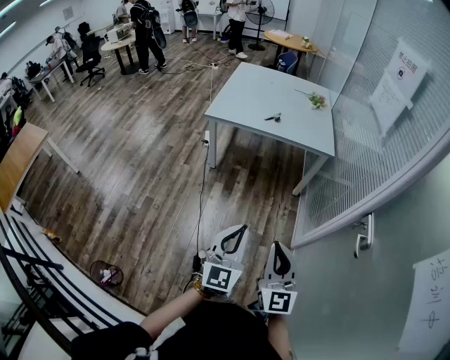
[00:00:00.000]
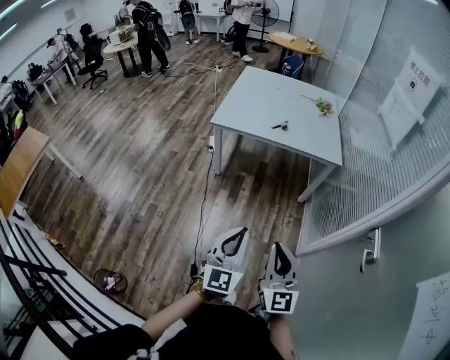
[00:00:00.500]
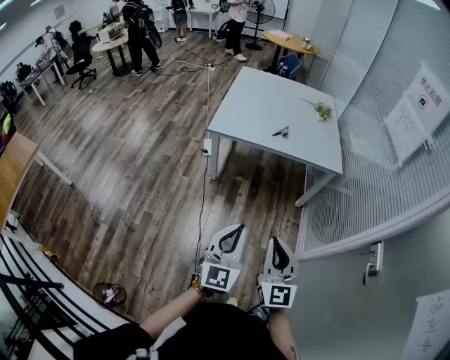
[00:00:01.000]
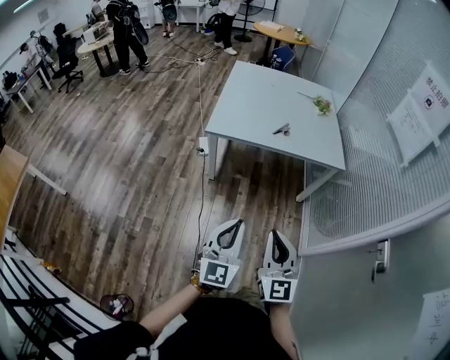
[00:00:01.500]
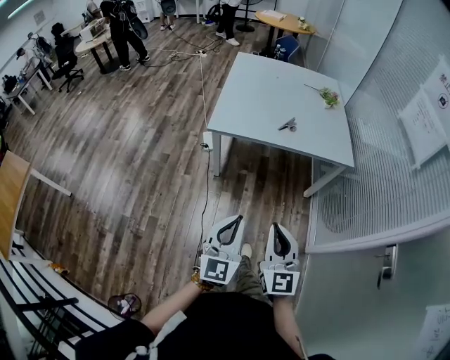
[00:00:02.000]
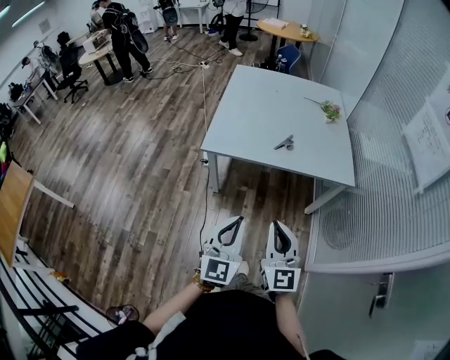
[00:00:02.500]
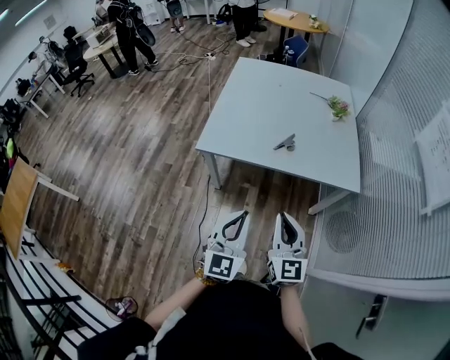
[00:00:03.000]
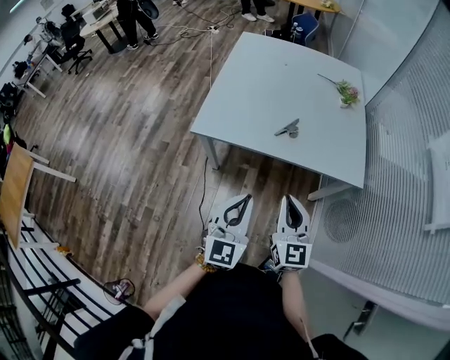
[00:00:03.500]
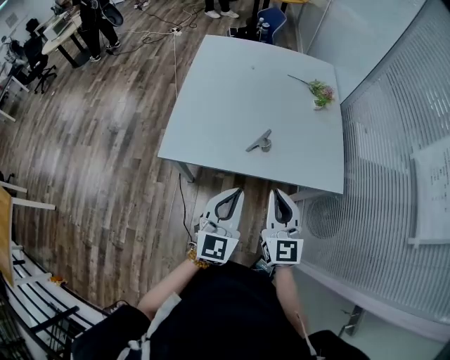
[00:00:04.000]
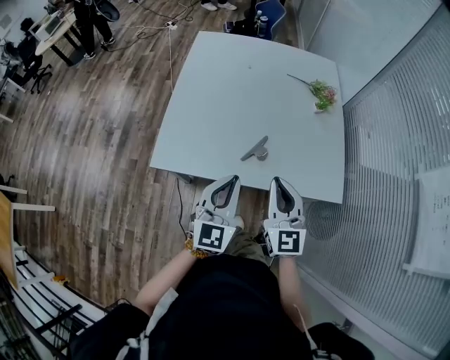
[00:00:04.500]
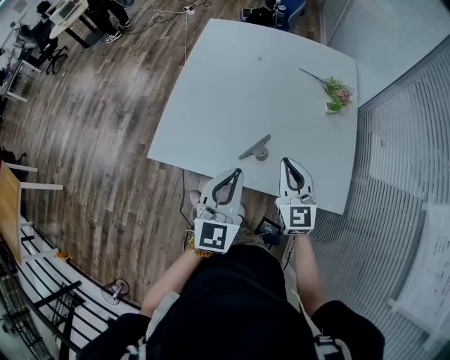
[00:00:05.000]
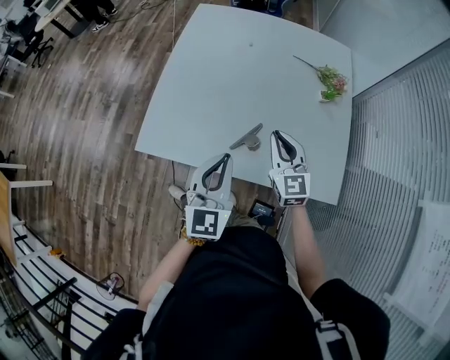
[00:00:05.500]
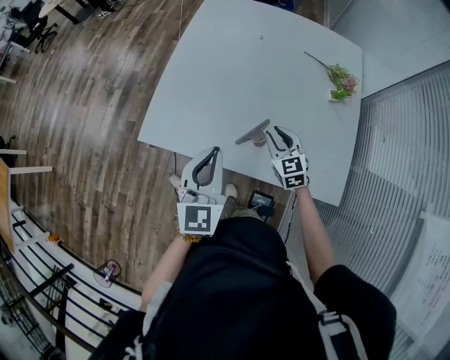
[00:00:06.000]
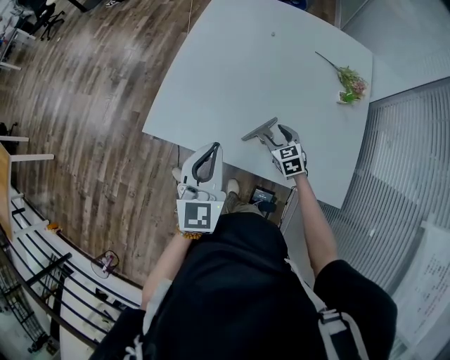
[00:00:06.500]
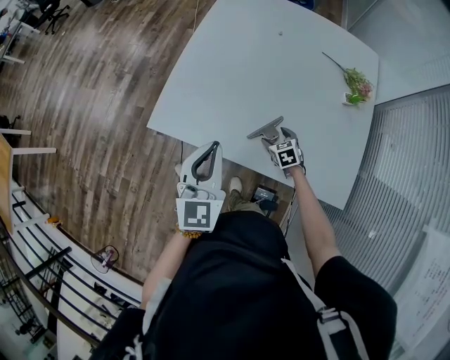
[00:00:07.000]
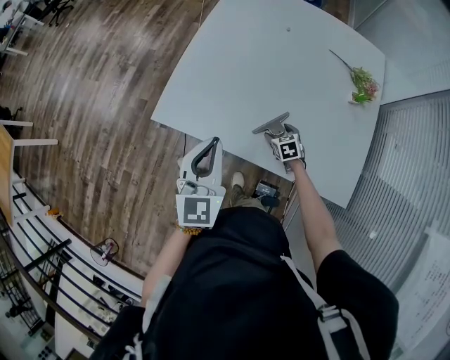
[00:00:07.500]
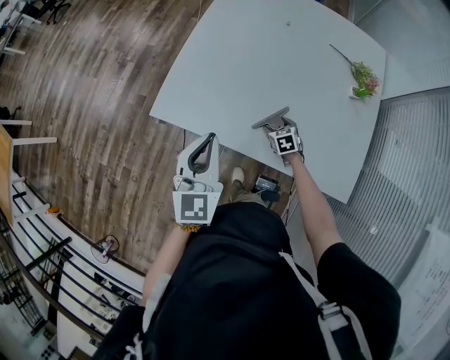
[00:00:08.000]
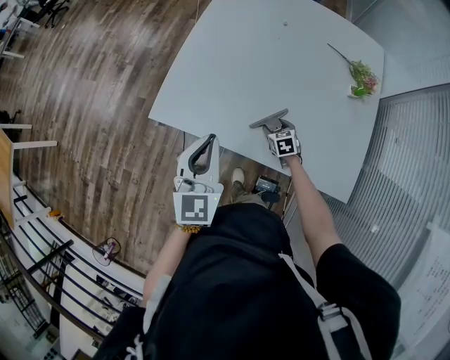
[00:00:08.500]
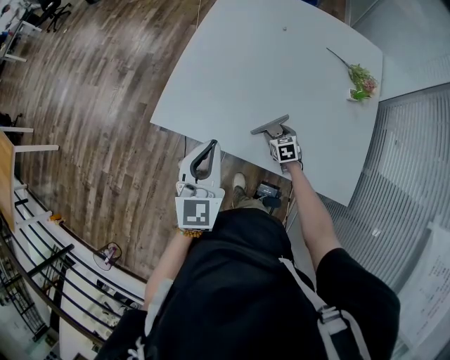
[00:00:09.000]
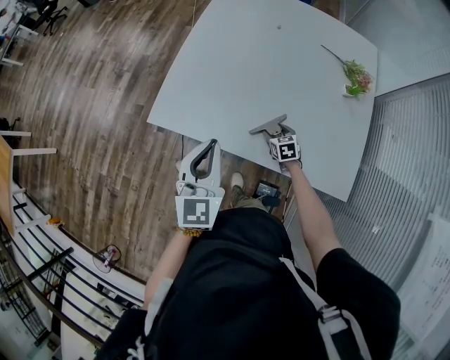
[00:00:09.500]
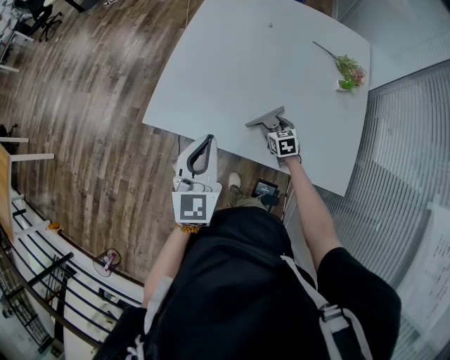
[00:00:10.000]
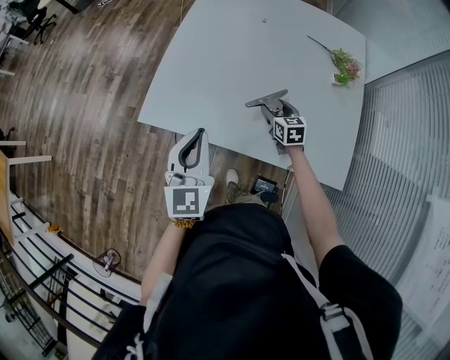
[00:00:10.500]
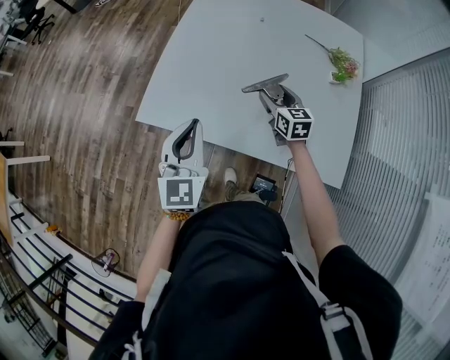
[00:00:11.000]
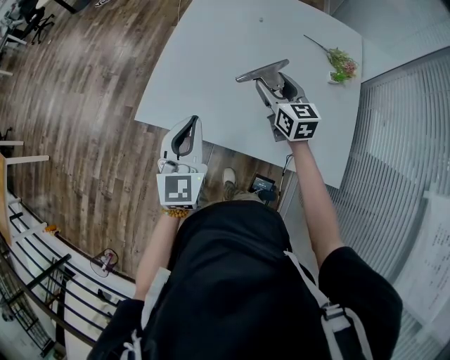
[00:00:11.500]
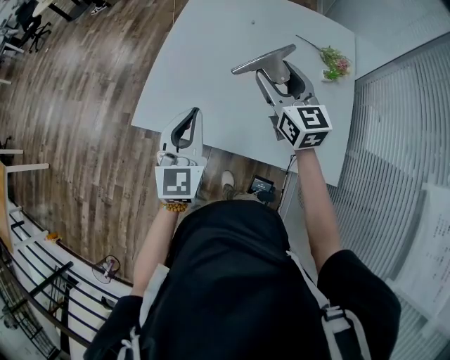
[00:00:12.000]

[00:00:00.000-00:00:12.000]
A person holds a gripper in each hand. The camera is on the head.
00:00:00.000 to 00:00:02.000: The two grippers go about 35 cm forward and to the left.
00:00:02.000 to 00:00:04.000: The pair of grippers is taken forward, some 40 cm.
00:00:04.000 to 00:00:06.000: The right gripper travels forward and downward by approximately 35 cm, and changes its angle by roughly 30 degrees. The left gripper travels forward by some 20 cm.
00:00:06.000 to 00:00:08.000: The left gripper shifts some 5 cm to the left. The right gripper moves downward, some 20 cm, swivels some 30 degrees, and opens.
00:00:08.000 to 00:00:10.000: The right gripper changes place by roughly 5 cm.
00:00:10.000 to 00:00:12.000: The left gripper ends up roughly 5 cm from where it was. The right gripper heads upward, covering approximately 35 cm, and points its fingers roughly 40 degrees further upward.

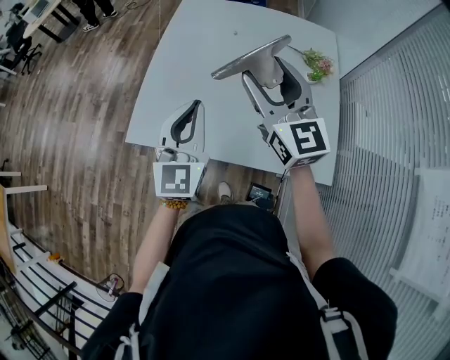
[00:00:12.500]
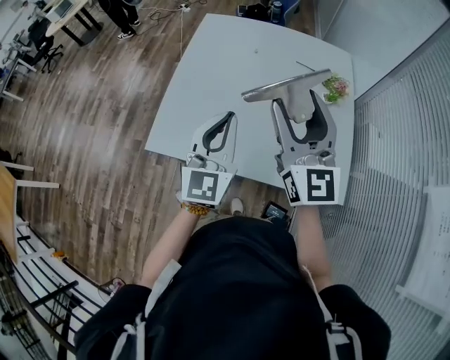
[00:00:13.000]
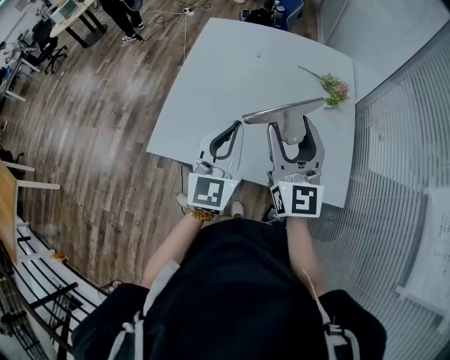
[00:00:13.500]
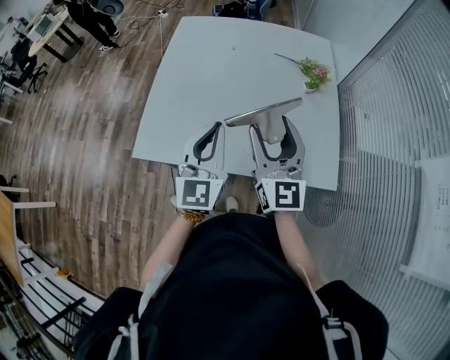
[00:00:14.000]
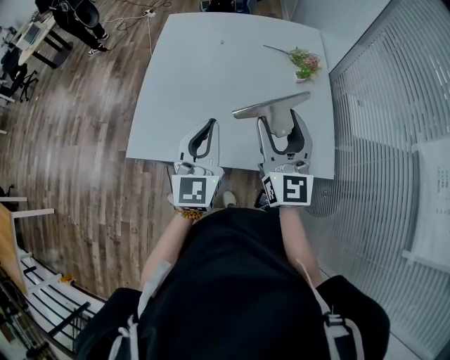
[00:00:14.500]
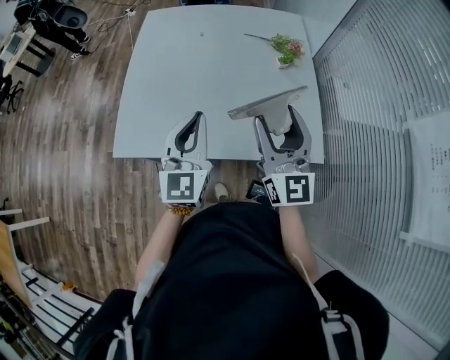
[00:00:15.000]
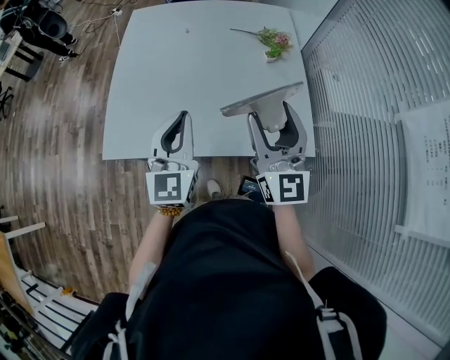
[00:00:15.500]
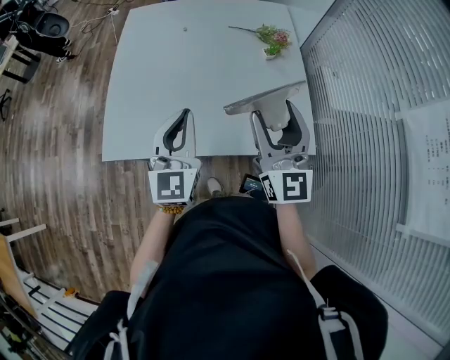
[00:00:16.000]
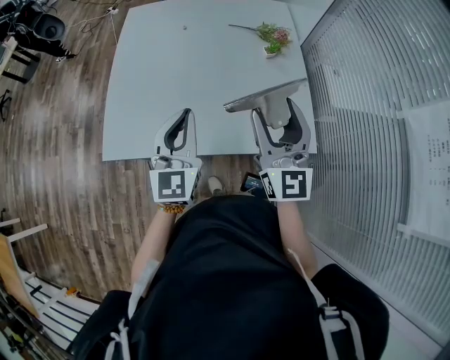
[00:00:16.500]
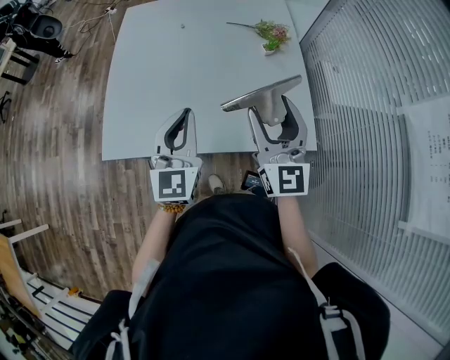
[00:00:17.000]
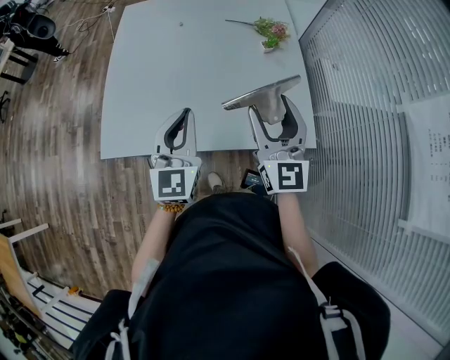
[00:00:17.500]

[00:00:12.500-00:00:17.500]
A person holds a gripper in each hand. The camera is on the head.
00:00:12.500 to 00:00:15.000: The left gripper travels to the right by about 5 cm; the right gripper moves backward, to the right and downward, some 15 cm, and swivels about 20 degrees.
00:00:15.000 to 00:00:17.500: The grippers stay close to where they were, moving slightly.

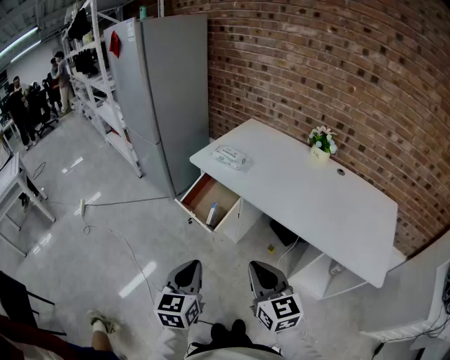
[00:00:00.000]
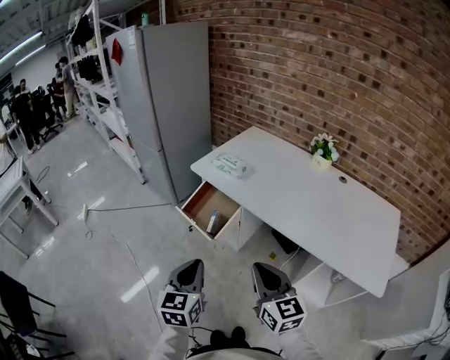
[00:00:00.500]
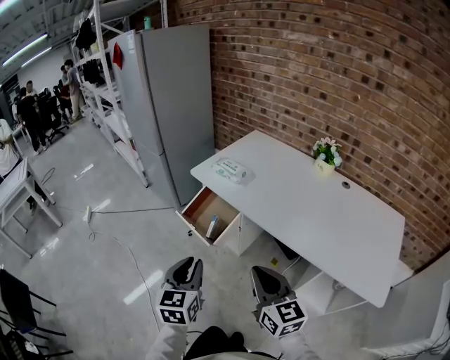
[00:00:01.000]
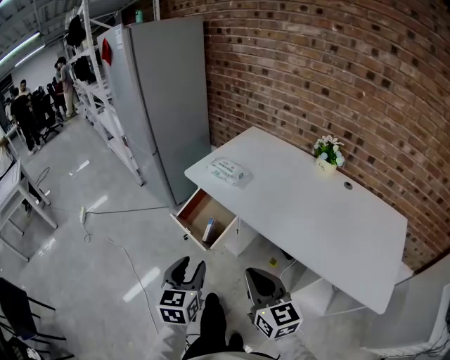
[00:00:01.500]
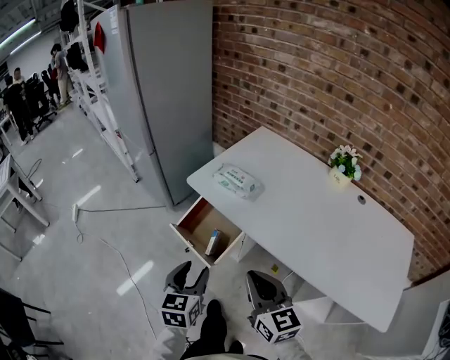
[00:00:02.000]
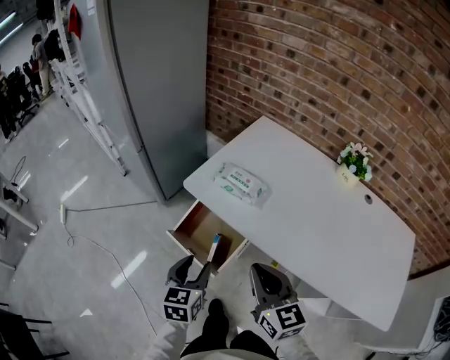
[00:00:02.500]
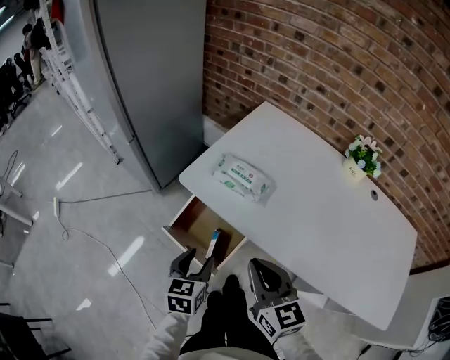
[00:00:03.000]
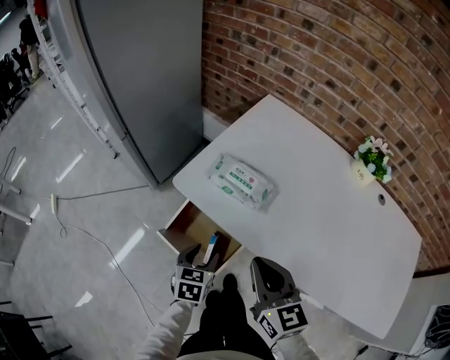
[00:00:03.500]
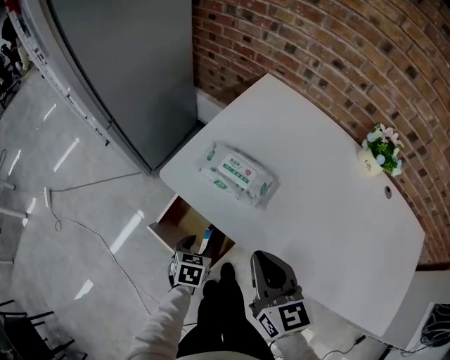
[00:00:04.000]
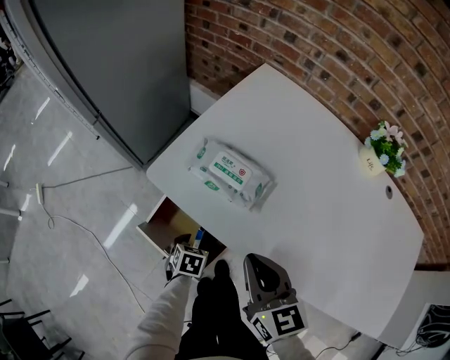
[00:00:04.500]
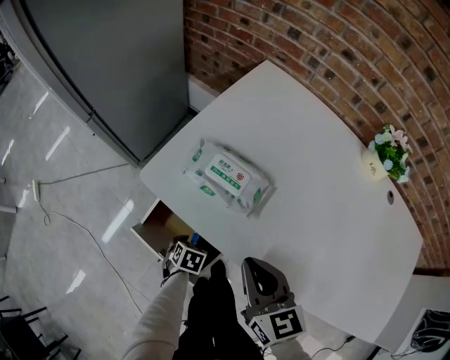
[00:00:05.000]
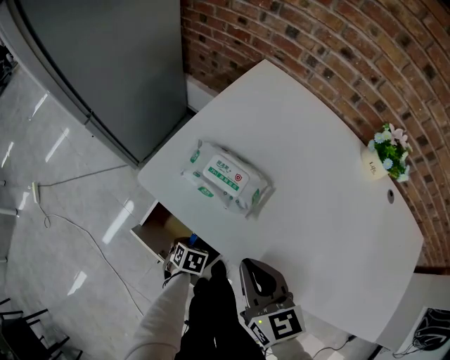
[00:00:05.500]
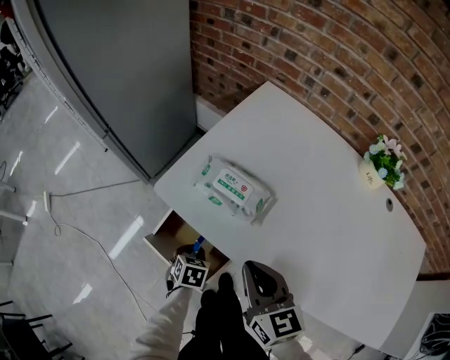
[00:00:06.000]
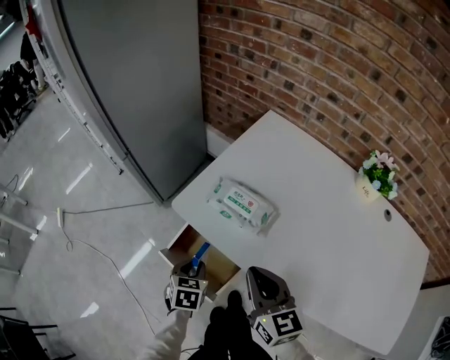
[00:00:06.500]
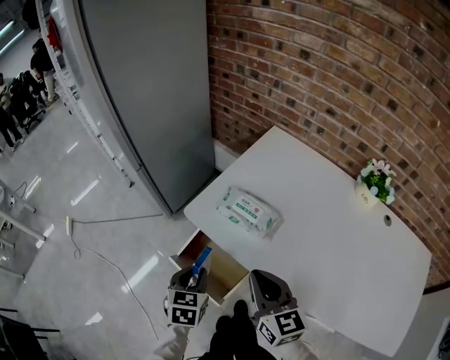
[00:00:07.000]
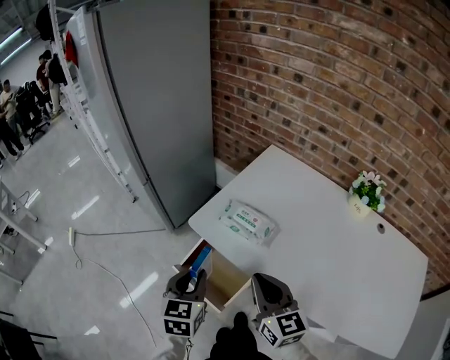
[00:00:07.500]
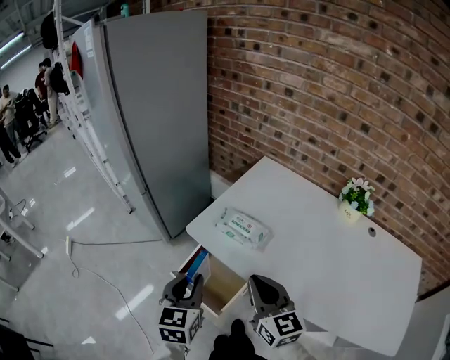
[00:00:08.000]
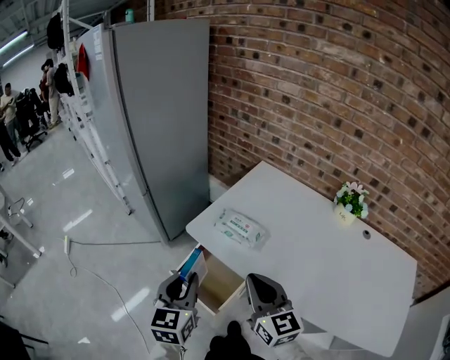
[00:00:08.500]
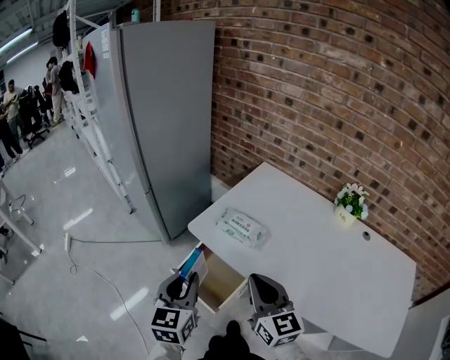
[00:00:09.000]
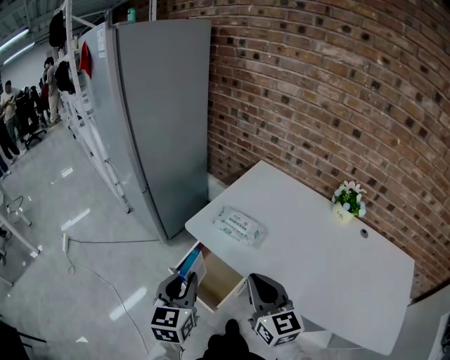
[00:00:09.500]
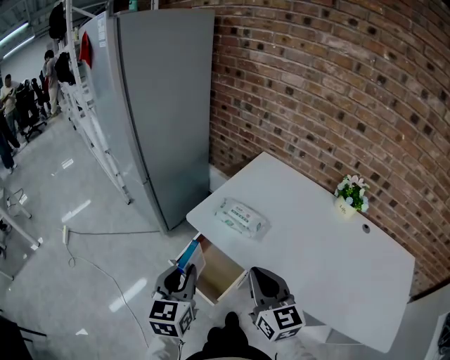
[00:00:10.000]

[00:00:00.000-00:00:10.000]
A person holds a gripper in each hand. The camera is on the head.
00:00:00.000 to 00:00:02.000: The grippers both shift forward by roughly 20 cm. The left gripper opens its fingers.
00:00:02.000 to 00:00:04.000: The left gripper travels downward and forward by approximately 35 cm, and changes its angle by approximately 30 degrees. Meanwhile the right gripper goes some 25 cm forward.
00:00:04.000 to 00:00:06.000: The left gripper goes downward and returns, about 15 cm each way, and closes up.
00:00:06.000 to 00:00:08.000: The right gripper moves upward and backward, roughly 10 cm. The left gripper moves upward, roughly 35 cm, and tips its fingers upward by some 40 degrees.
00:00:08.000 to 00:00:10.000: The grippers move only a little.
